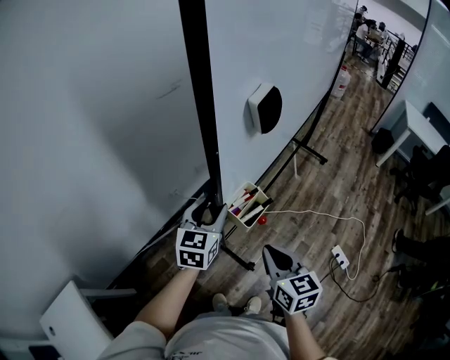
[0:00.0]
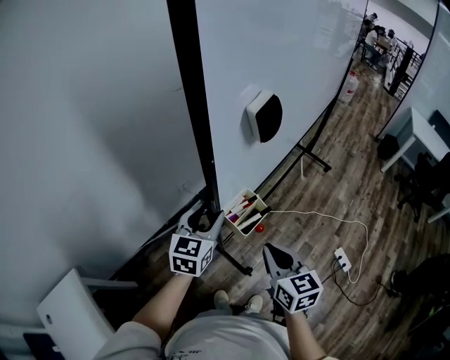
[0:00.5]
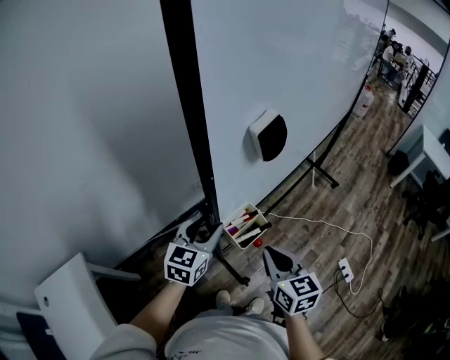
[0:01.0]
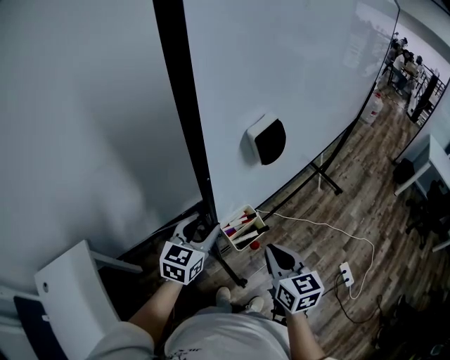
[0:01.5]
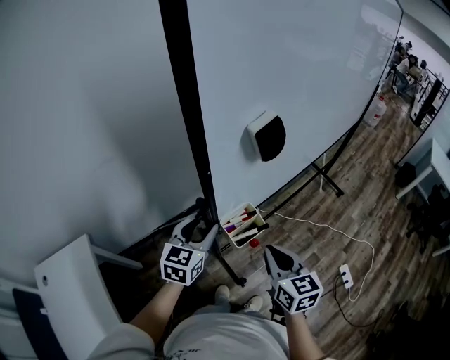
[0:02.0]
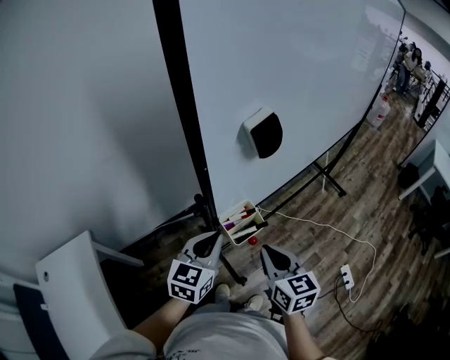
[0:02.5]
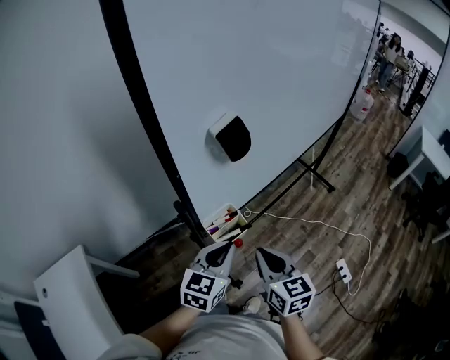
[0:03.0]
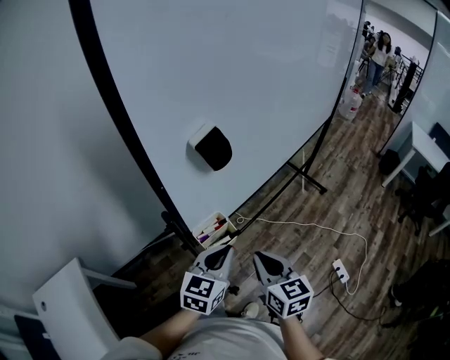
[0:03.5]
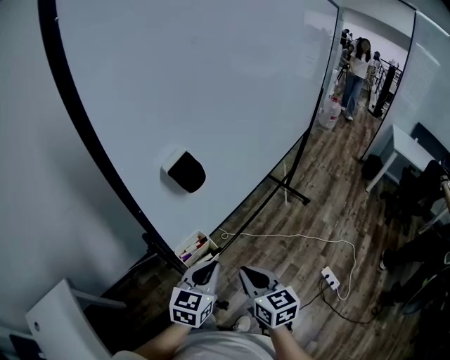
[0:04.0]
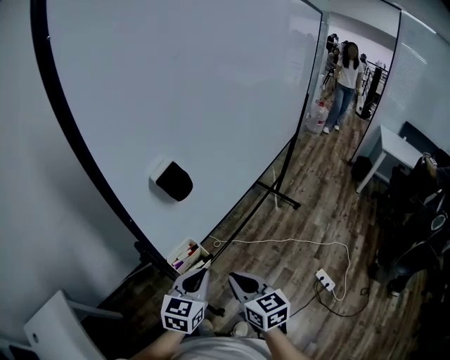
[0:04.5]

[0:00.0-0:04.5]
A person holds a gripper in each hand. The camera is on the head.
0:00.0 to 0:02.0: The left gripper travels backward and to the left by roughly 20 cm; the right gripper goes some 10 cm to the left and backward.
0:02.0 to 0:04.5: The right gripper heads to the right, covering roughly 5 cm. Meanwhile the left gripper shifts roughly 15 cm to the right, and closes.

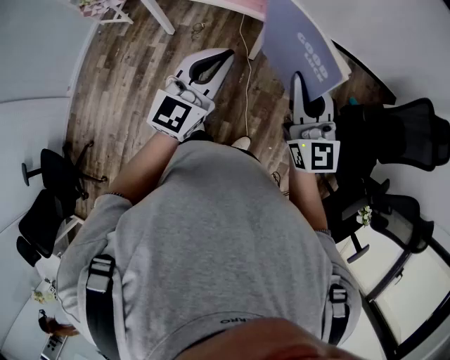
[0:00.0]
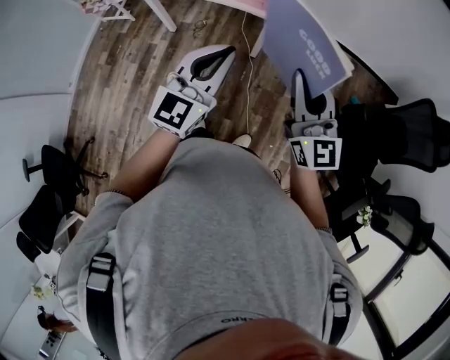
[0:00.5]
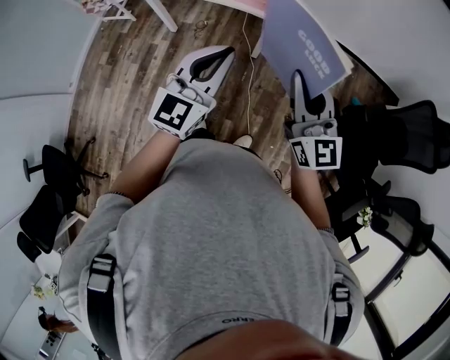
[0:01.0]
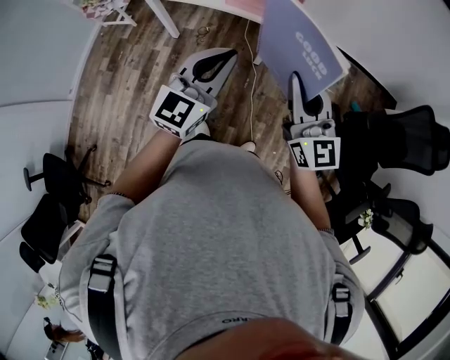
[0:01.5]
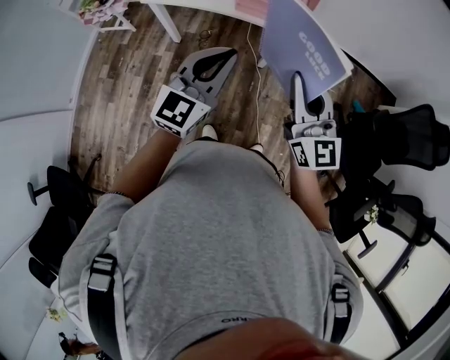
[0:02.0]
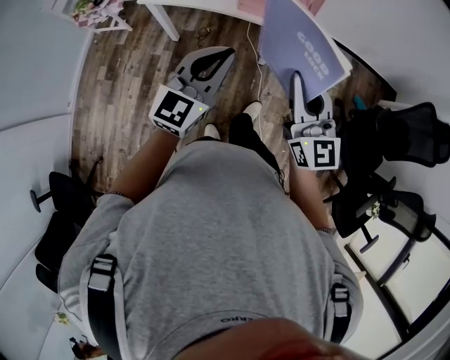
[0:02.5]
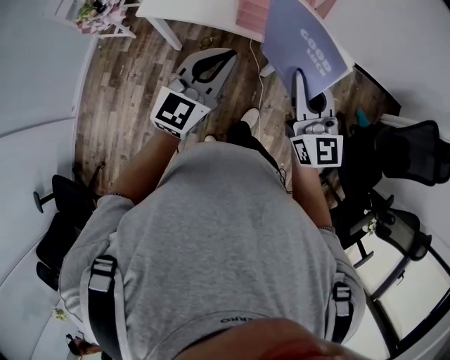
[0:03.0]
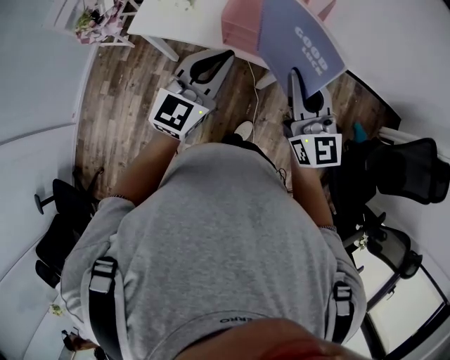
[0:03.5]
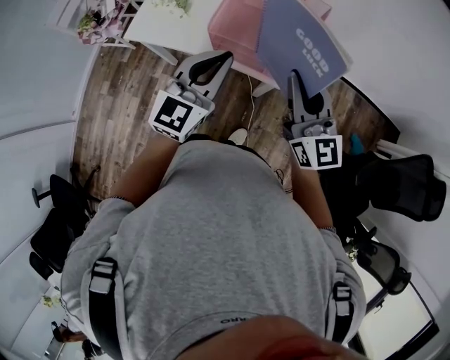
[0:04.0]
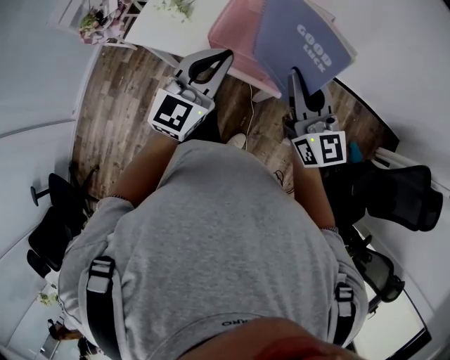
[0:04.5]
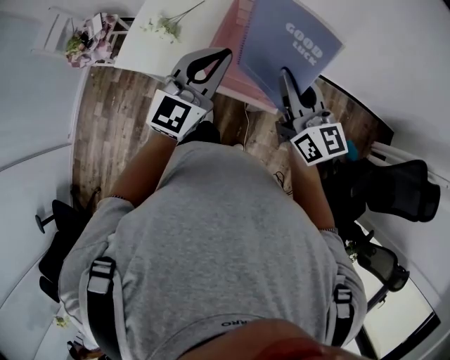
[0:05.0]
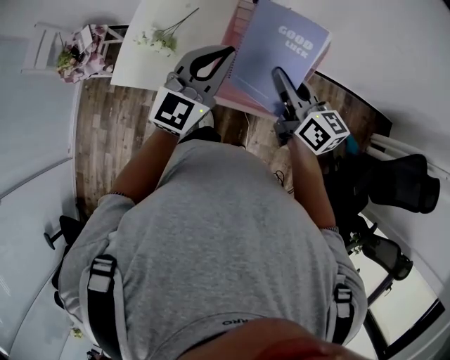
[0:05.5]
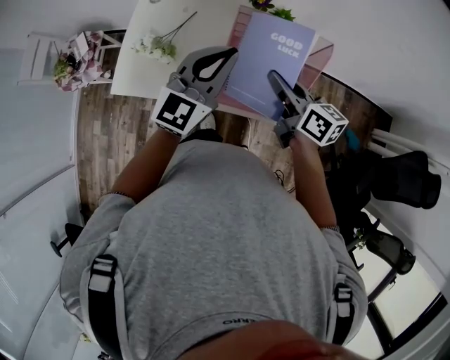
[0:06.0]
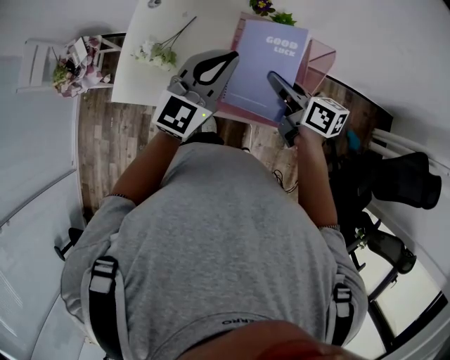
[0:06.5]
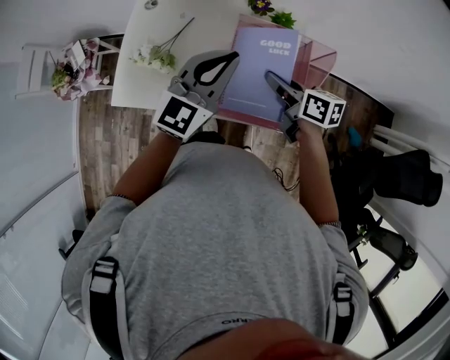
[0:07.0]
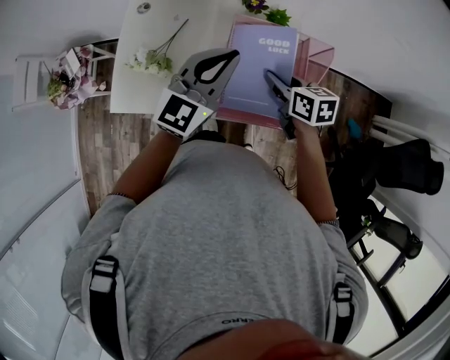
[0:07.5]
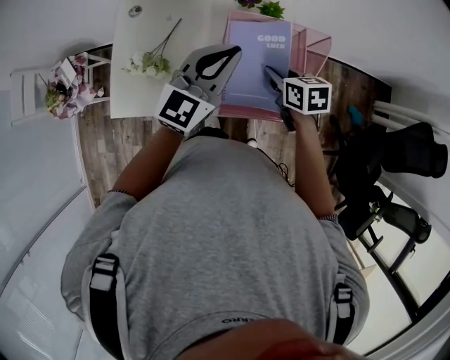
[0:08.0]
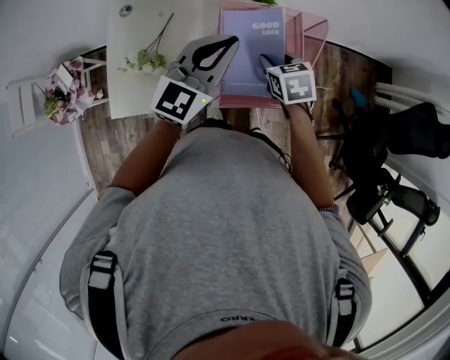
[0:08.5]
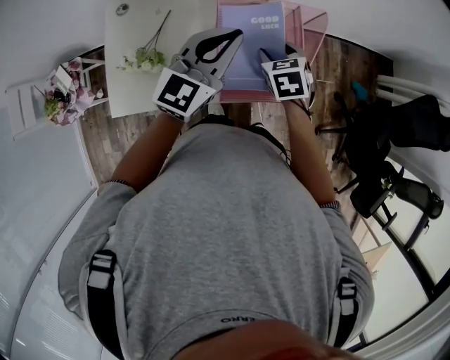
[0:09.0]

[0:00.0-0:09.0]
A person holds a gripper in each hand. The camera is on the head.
0:00.0 to 0:02.0: The right gripper goes about 15 cm to the left. The left gripper is displaced to the left and forward by approximately 15 cm.
0:02.0 to 0:04.5: The grippers both shift forward by approximately 30 cm.
0:04.5 to 0:07.0: The right gripper shifts some 25 cm forward and downward, and points its fingers roughly 30 degrees further downward, while the left gripper goes roughly 20 cm forward.
0:07.0 to 0:09.0: The right gripper is displaced downward by roughly 5 cm, changes its angle by about 50 degrees, and opens up.

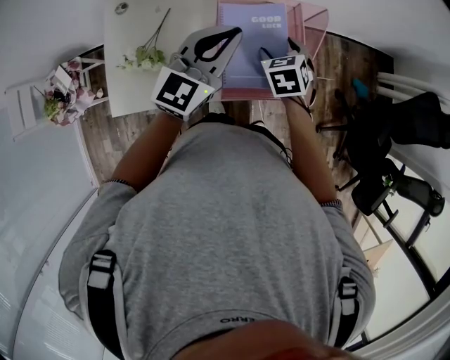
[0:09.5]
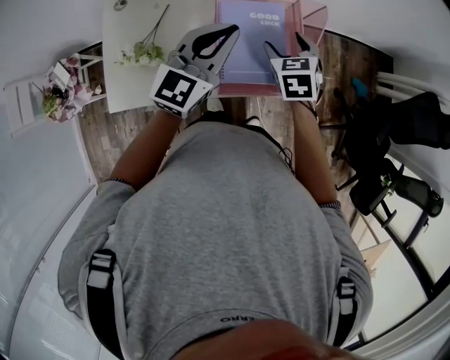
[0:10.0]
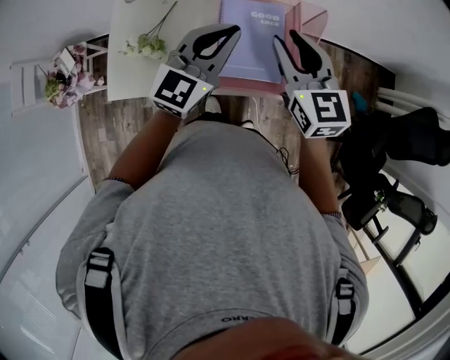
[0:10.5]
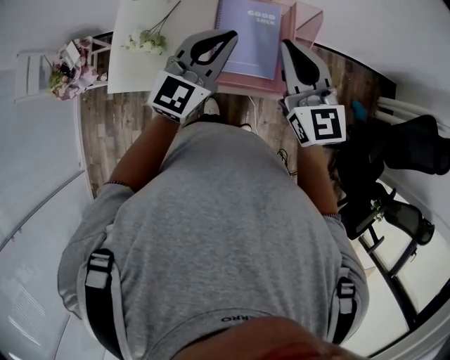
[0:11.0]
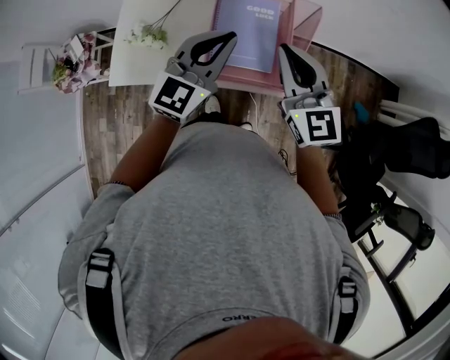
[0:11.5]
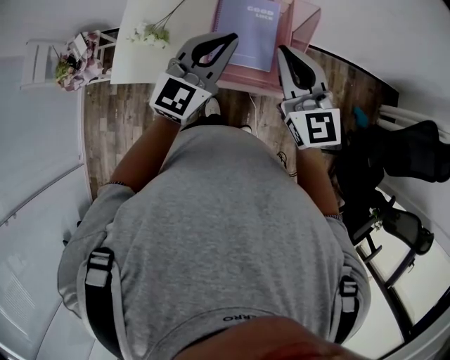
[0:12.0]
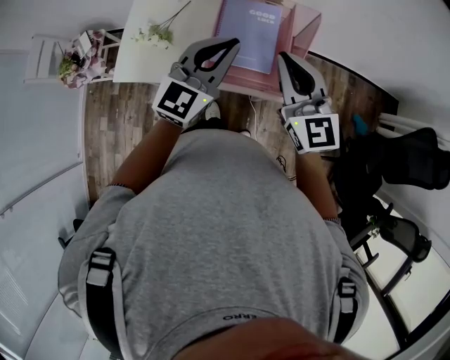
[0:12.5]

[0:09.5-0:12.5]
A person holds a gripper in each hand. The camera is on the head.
0:09.5 to 0:11.0: The right gripper goes some 20 cm upward, tilts its fingers some 50 degrees upward, and closes up. The left gripper heads backward, covering about 5 cm.
0:11.0 to 0:12.5: The right gripper changes place by about 5 cm. The left gripper ends up roughly 5 cm from where it was.

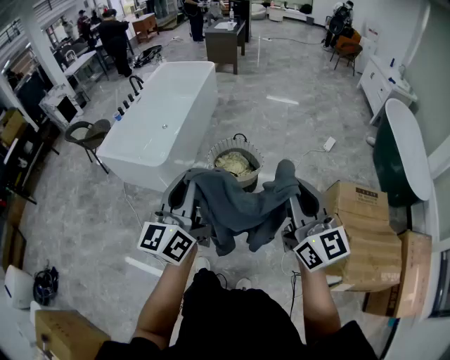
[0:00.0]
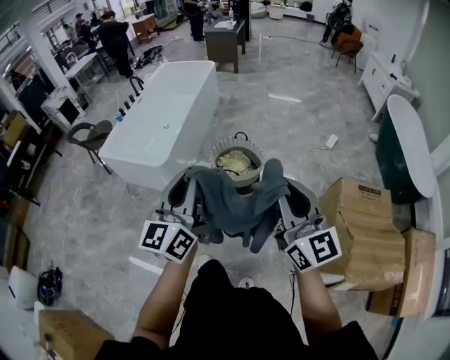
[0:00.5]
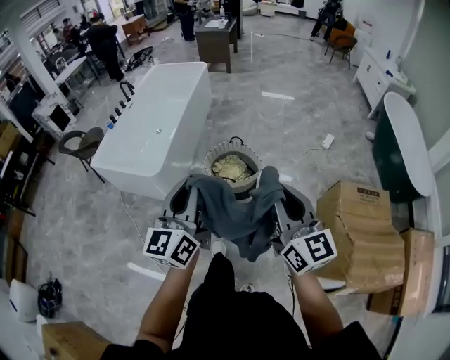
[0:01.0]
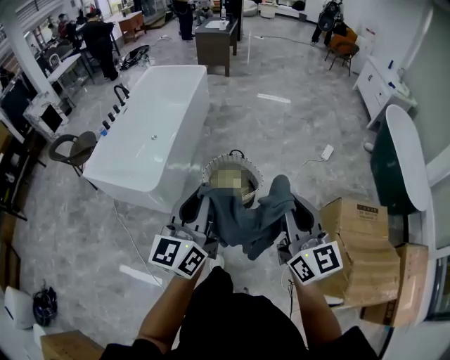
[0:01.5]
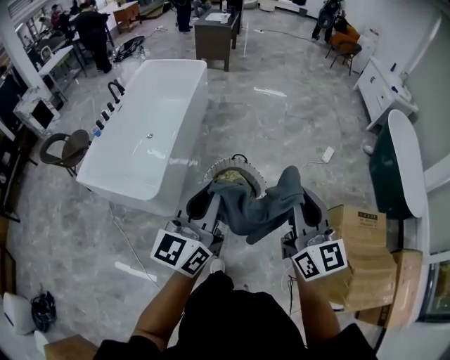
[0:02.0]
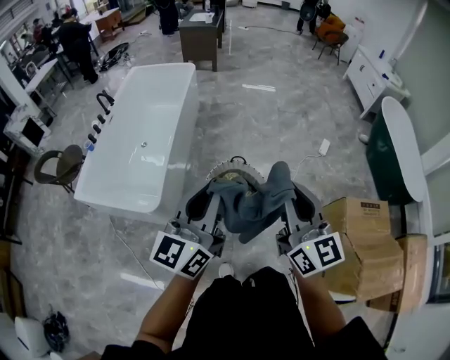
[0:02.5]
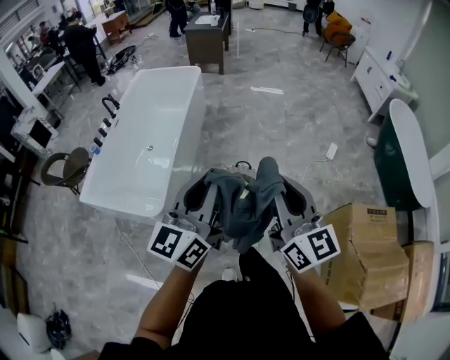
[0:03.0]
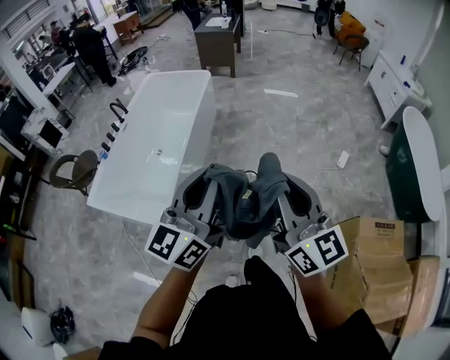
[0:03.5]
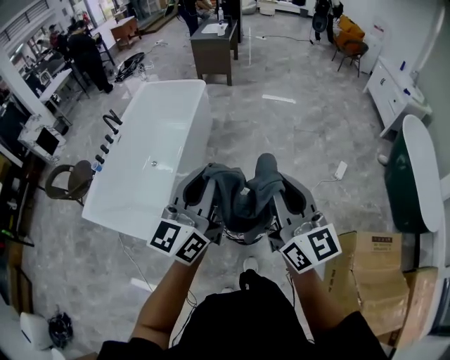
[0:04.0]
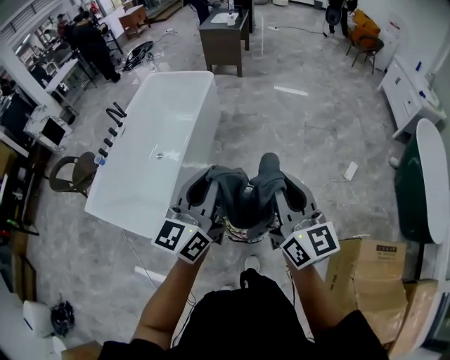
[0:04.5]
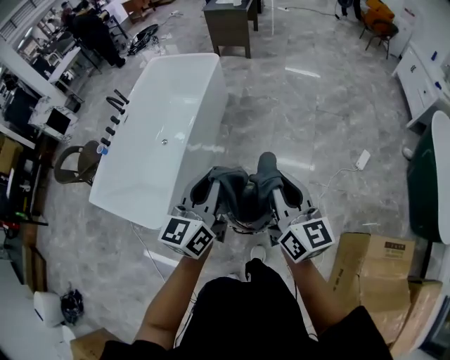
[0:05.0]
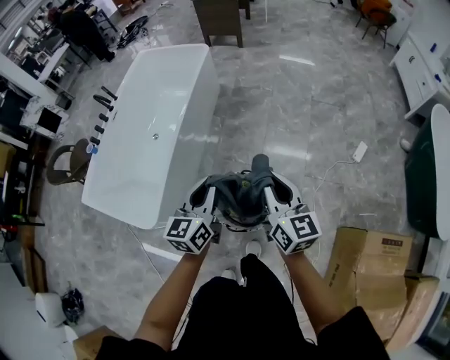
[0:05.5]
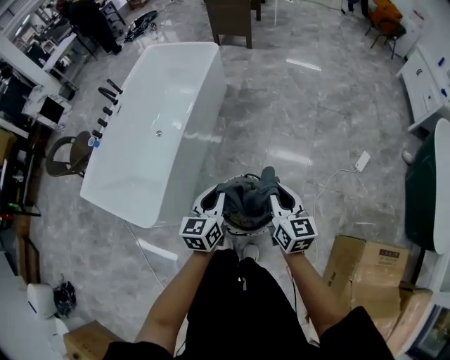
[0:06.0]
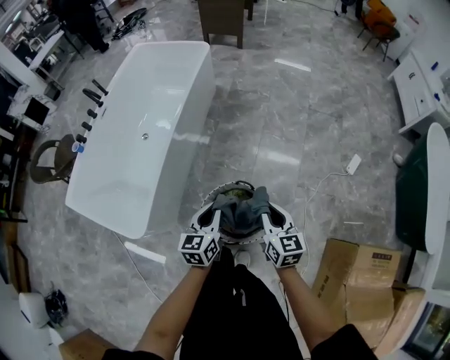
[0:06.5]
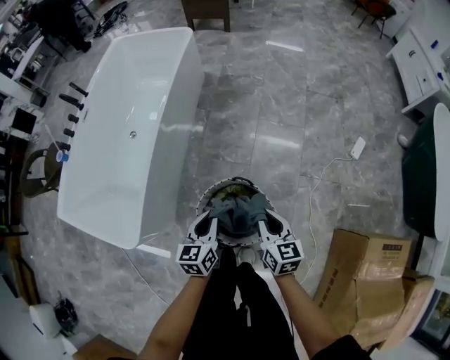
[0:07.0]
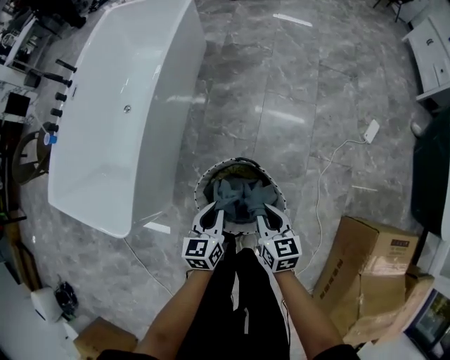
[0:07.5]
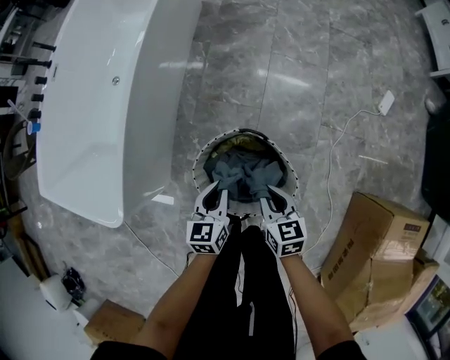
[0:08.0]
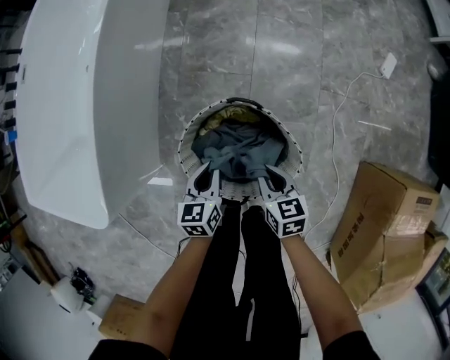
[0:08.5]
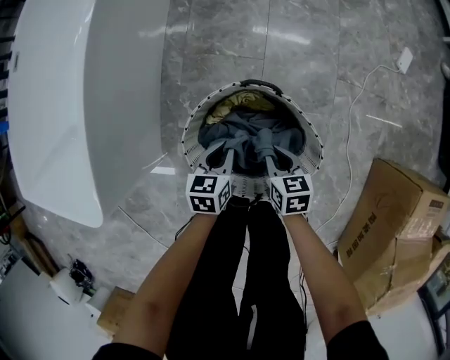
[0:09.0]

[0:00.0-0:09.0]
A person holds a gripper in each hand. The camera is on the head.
0:00.0 to 0:02.0: The grippers both shift forward by about 30 cm.
0:02.0 to 0:04.5: Both grippers travel together forward, about 30 cm.
0:04.5 to 0:07.0: Both grippers travel together downward, some 40 cm. The left gripper points its fingers some 40 degrees further downward, while the right gripper tilts its fingers some 40 degrees downward.
0:07.0 to 0:09.0: The two grippers go about 40 cm downward. The right gripper changes its angle by approximately 20 degrees, while the left gripper changes its angle by about 20 degrees.
